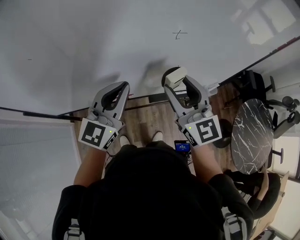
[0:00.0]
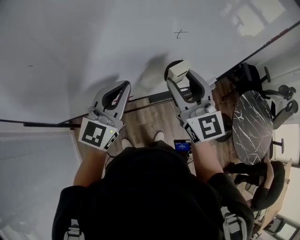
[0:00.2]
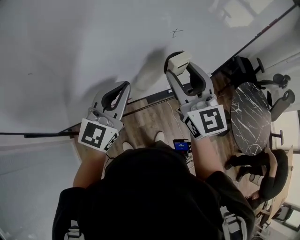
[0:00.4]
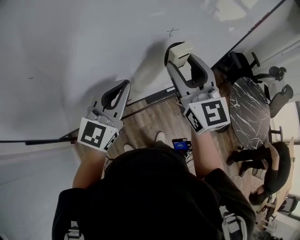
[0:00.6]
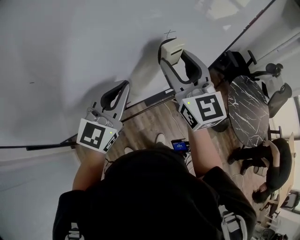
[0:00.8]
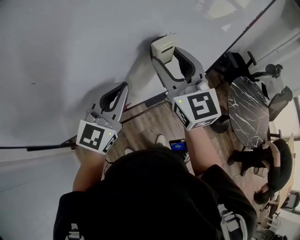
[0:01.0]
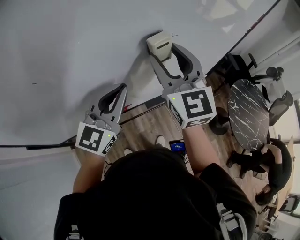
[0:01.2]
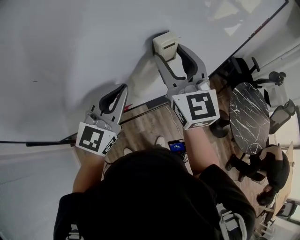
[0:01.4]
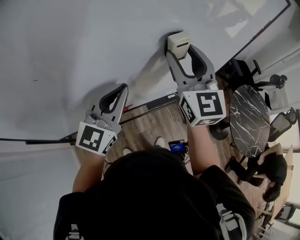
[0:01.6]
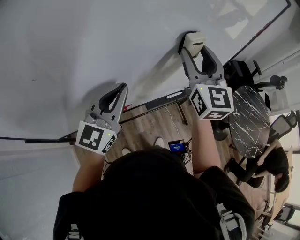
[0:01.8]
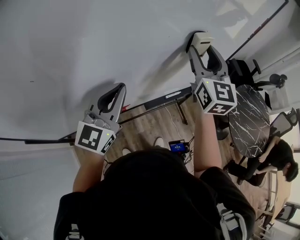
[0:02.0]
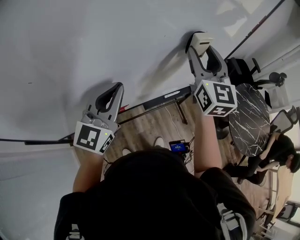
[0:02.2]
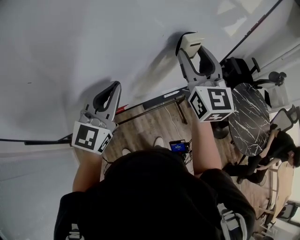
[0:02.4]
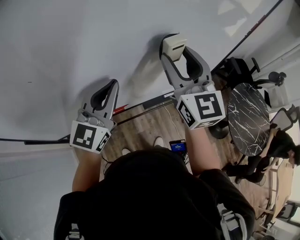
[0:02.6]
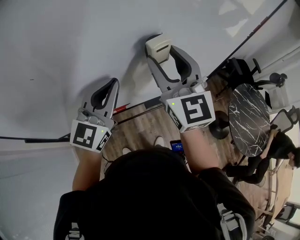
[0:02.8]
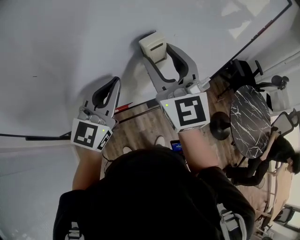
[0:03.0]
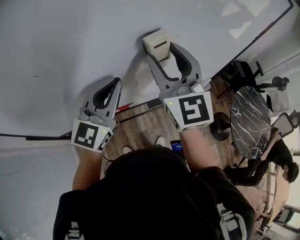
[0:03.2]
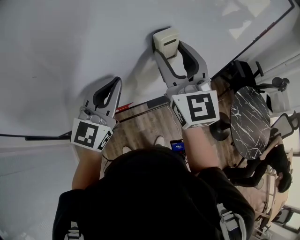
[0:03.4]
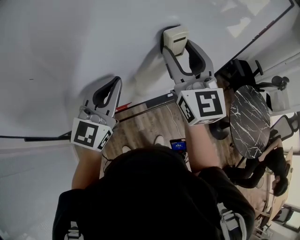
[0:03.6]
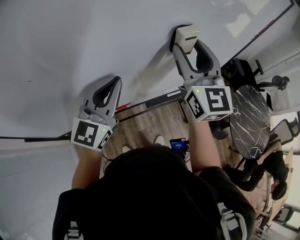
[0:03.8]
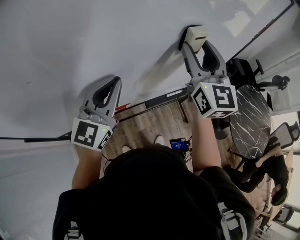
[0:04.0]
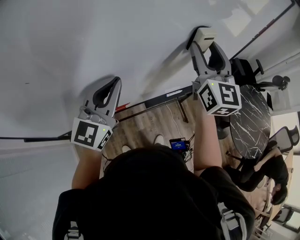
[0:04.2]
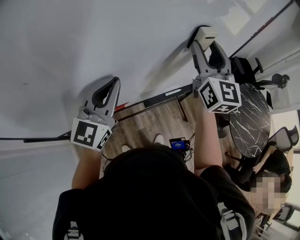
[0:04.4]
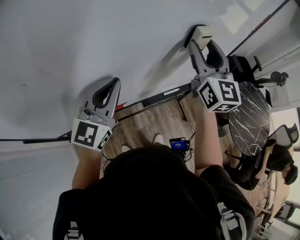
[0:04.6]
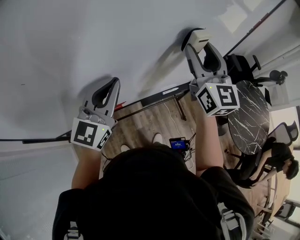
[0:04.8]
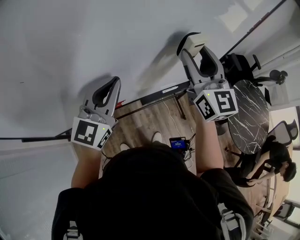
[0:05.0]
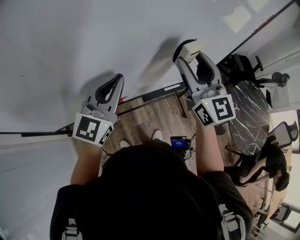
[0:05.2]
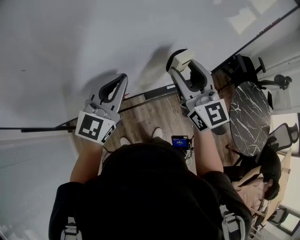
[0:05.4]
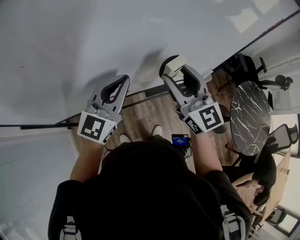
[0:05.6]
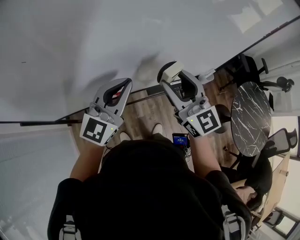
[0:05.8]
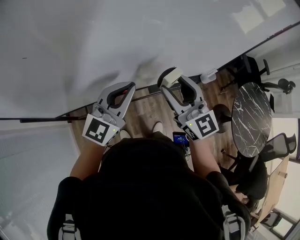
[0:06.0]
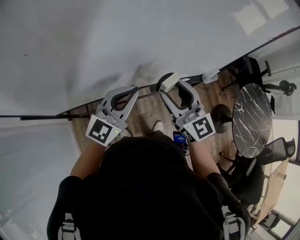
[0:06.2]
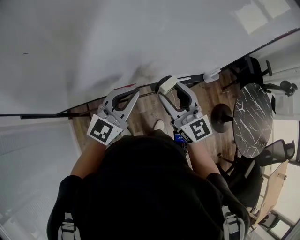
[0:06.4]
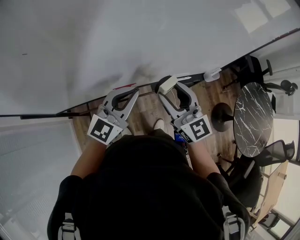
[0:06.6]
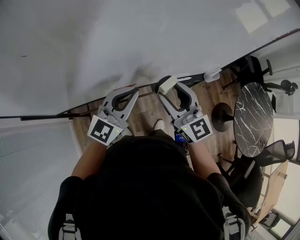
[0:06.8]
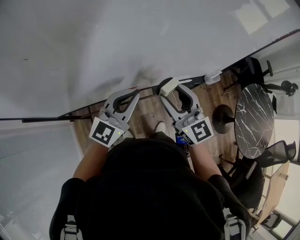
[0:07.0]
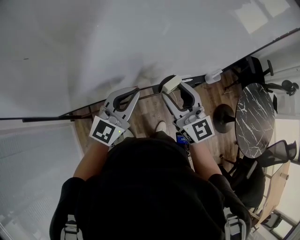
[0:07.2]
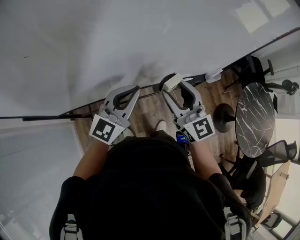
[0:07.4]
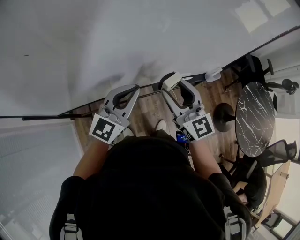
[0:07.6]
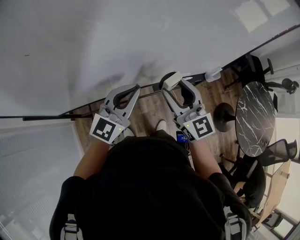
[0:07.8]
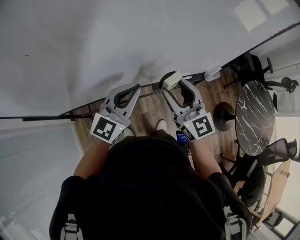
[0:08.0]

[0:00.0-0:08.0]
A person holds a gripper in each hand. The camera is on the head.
0:00.0 to 0:01.6: The right gripper travels upward and forward by about 10 cm, and changes its angle by approximately 20 degrees.
0:01.6 to 0:03.2: The right gripper moves some 10 cm to the right and comes back.
0:03.2 to 0:04.8: The right gripper travels to the right by approximately 15 cm.
0:04.8 to 0:06.4: The left gripper moves downward and backward, roughly 10 cm. The right gripper moves downward, backward and to the left, roughly 25 cm, and changes its angle by about 30 degrees.
0:06.4 to 0:08.0: Neither gripper changes place.

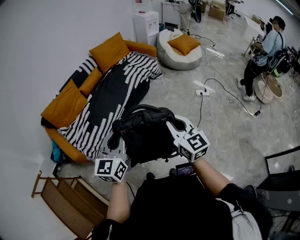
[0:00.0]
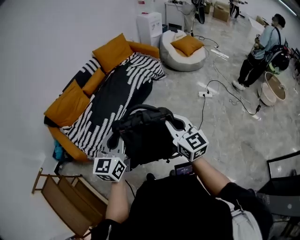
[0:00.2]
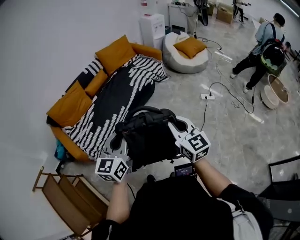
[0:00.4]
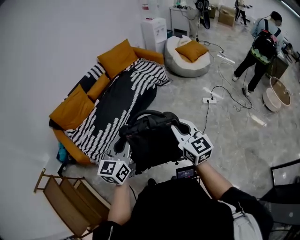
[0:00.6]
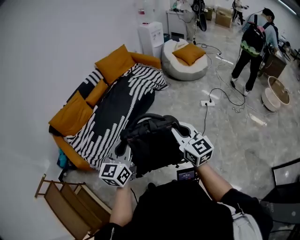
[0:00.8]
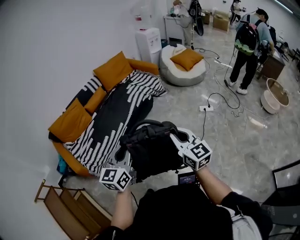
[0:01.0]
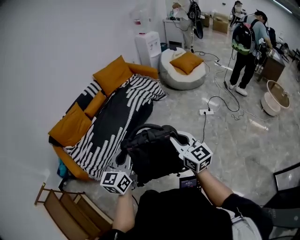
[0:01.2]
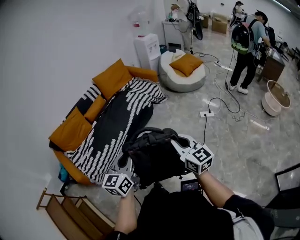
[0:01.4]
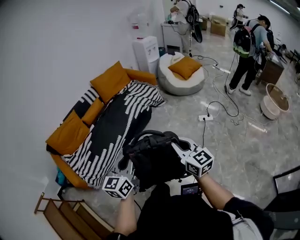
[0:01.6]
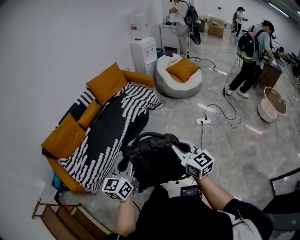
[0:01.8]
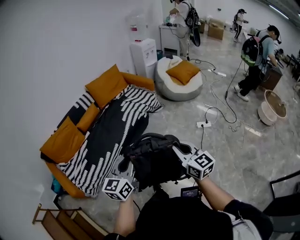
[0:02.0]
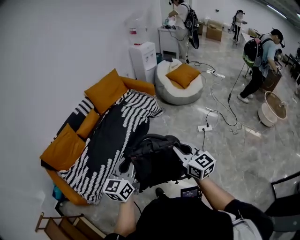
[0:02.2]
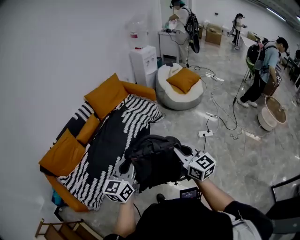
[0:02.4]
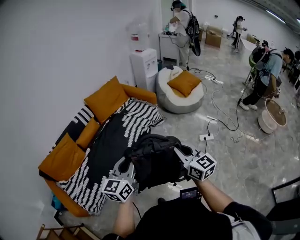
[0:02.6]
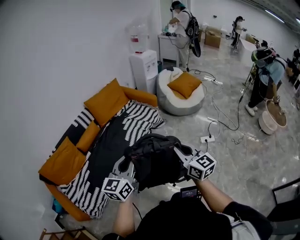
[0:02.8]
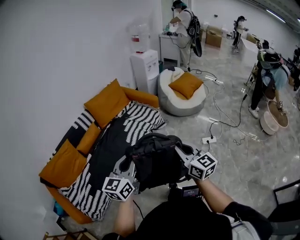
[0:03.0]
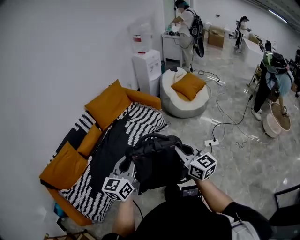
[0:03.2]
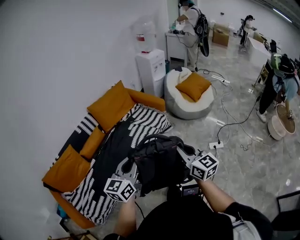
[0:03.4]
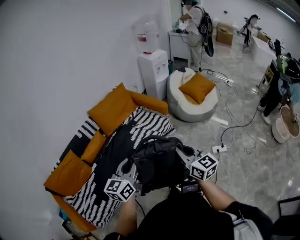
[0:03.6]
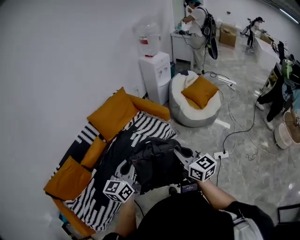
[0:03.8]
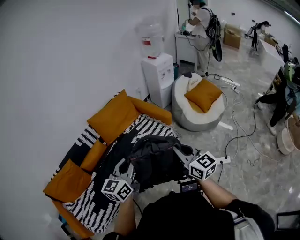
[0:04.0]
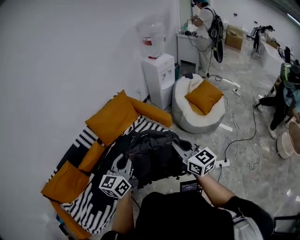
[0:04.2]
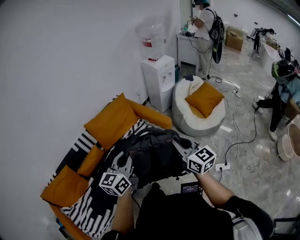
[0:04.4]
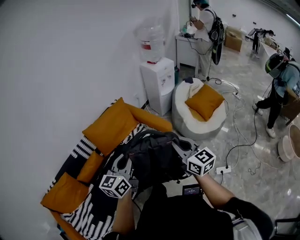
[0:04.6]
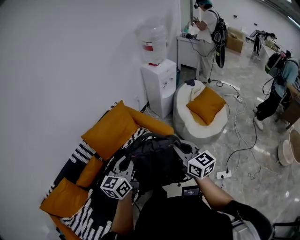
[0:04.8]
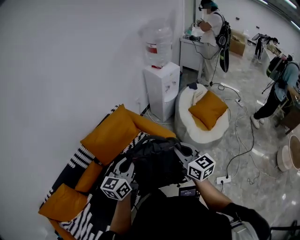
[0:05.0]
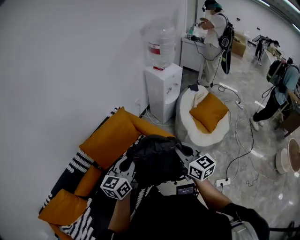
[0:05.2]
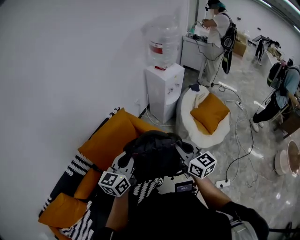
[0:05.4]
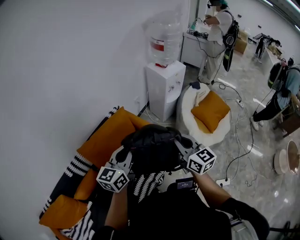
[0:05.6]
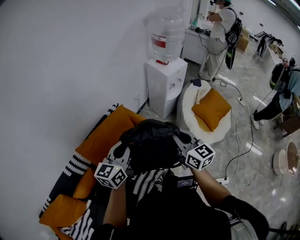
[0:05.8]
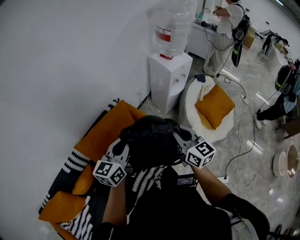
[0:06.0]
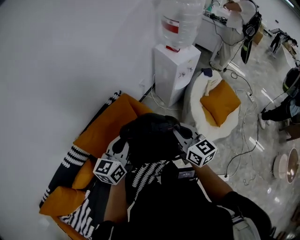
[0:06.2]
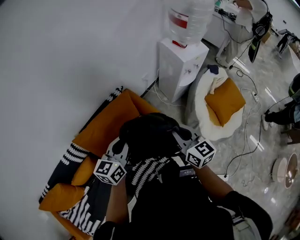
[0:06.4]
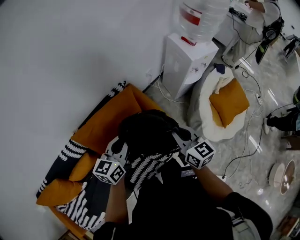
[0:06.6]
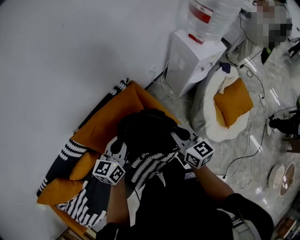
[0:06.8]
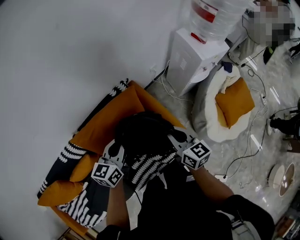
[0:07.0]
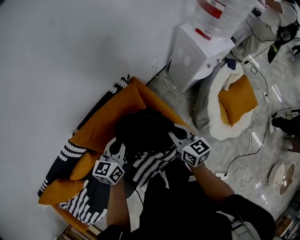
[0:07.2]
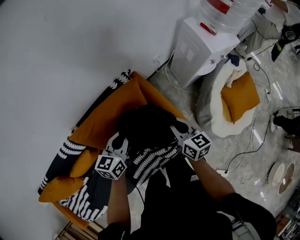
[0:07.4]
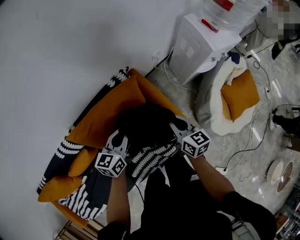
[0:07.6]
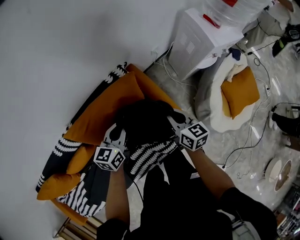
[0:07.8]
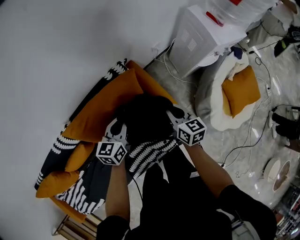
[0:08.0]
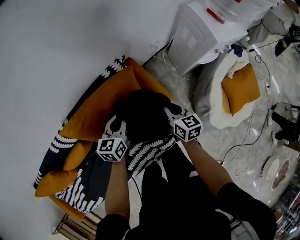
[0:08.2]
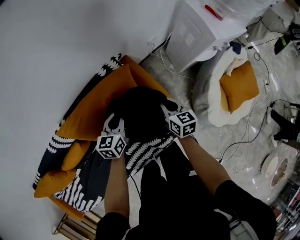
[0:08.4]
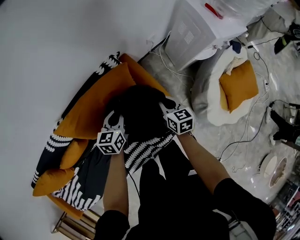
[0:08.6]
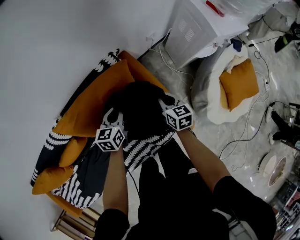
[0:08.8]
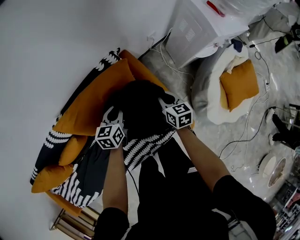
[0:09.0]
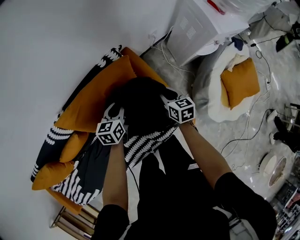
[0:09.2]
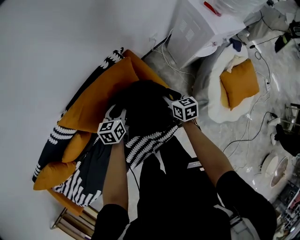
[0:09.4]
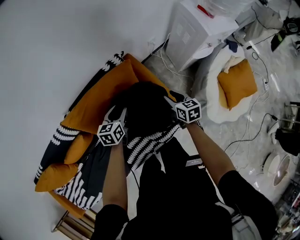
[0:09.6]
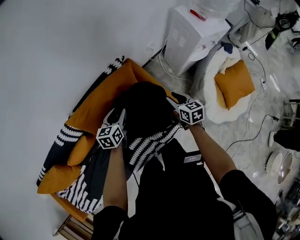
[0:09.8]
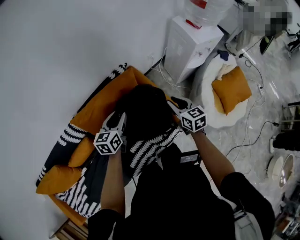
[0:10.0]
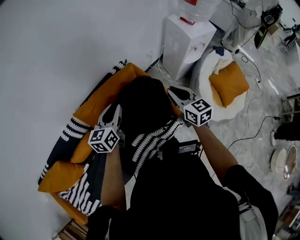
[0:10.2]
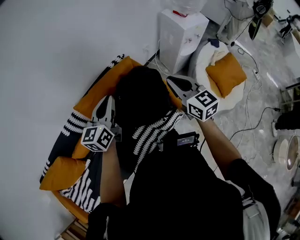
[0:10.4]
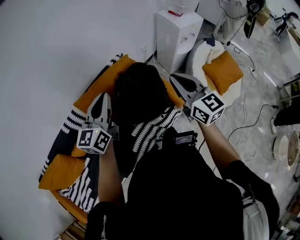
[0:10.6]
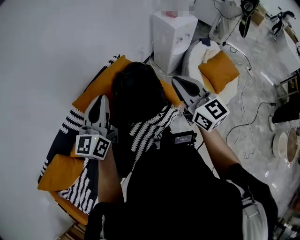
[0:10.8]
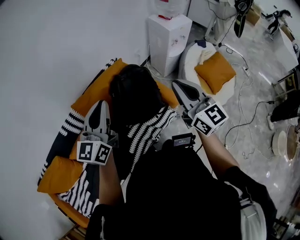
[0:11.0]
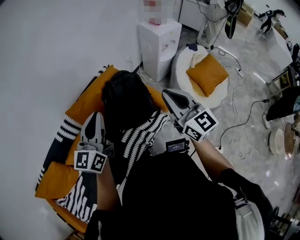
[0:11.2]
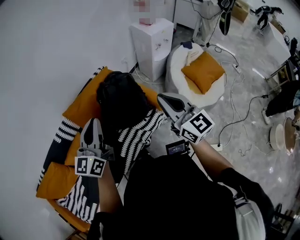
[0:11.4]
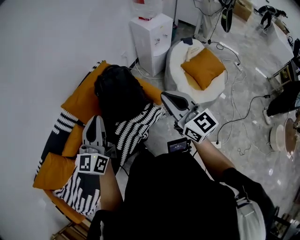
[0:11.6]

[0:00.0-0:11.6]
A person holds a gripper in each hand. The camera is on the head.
0:00.0 to 0:01.4: The grippers both shift to the right by roughly 15 cm.
0:01.4 to 0:02.8: Both grippers travel together forward, approximately 25 cm.
0:02.8 to 0:04.4: Both grippers travel together forward, some 40 cm.
0:04.4 to 0:05.8: The two grippers go some 35 cm forward.
0:05.8 to 0:07.2: Both grippers travel together downward, forward and to the left, some 25 cm. The right gripper changes its angle by approximately 20 degrees; the left gripper rotates roughly 20 degrees.
0:07.2 to 0:08.8: The right gripper shifts some 20 cm downward and forward; the left gripper shifts approximately 15 cm downward.
0:08.8 to 0:10.2: The two grippers go about 25 cm upward and backward. The right gripper opens and closes again.
0:10.2 to 0:11.6: Both grippers travel together backward and upward, approximately 35 cm. The right gripper changes its angle by roughly 20 degrees. The left gripper turns by approximately 20 degrees, and closes up.

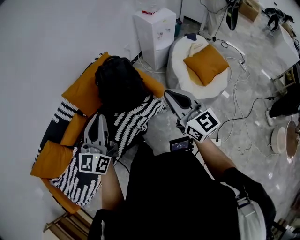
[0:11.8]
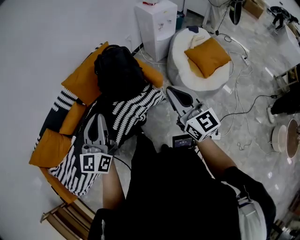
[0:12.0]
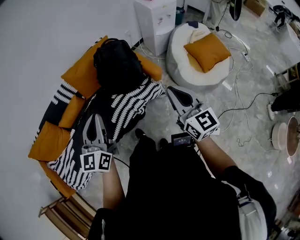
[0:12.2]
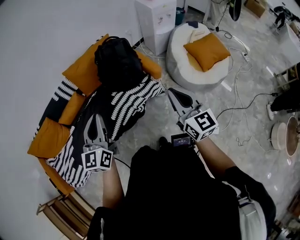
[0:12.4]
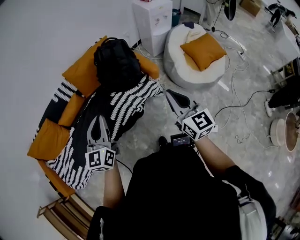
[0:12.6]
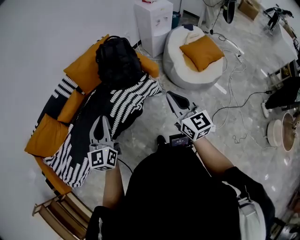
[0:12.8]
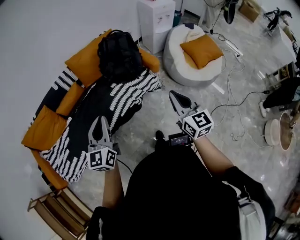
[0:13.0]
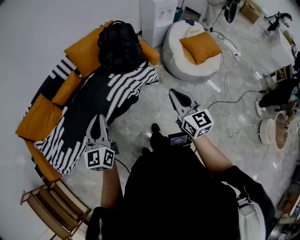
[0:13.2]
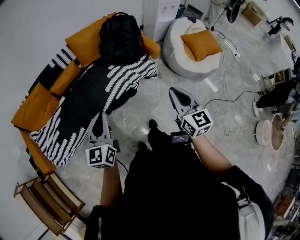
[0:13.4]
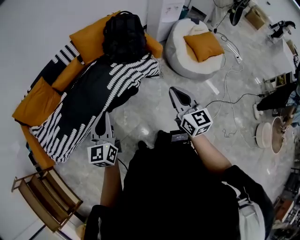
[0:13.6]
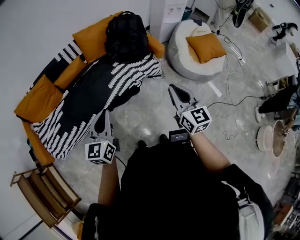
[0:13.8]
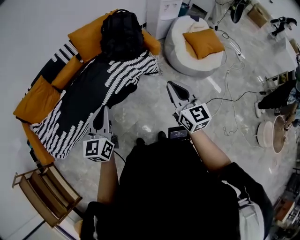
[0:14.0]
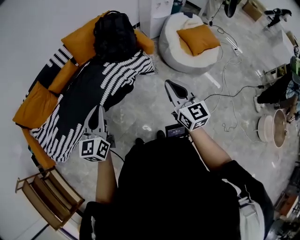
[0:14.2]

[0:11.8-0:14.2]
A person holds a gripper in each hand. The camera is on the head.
0:11.8 to 0:13.0: The grippers both shift backward by approximately 20 cm.
0:13.0 to 0:14.2: The grippers both shift backward by about 10 cm.

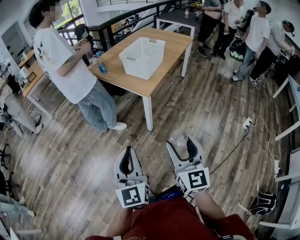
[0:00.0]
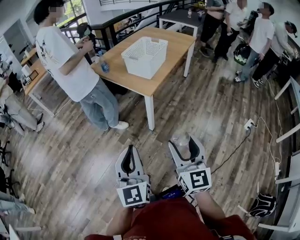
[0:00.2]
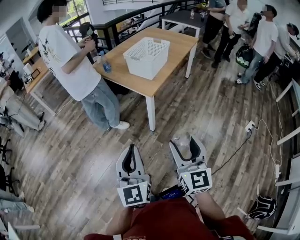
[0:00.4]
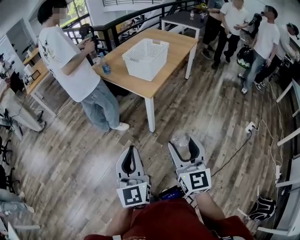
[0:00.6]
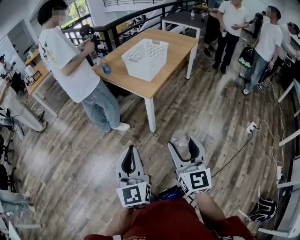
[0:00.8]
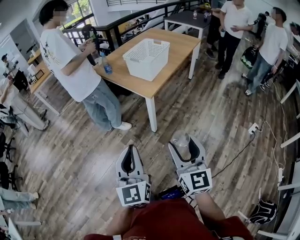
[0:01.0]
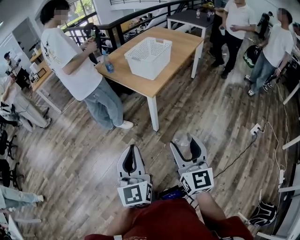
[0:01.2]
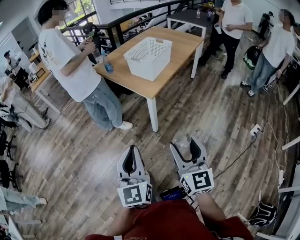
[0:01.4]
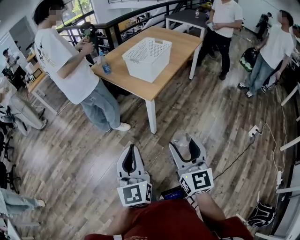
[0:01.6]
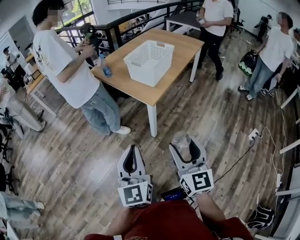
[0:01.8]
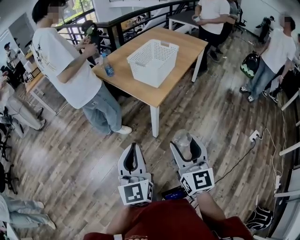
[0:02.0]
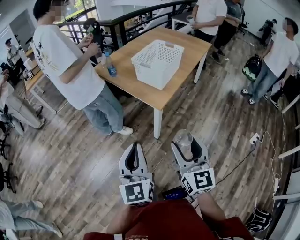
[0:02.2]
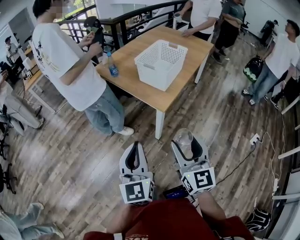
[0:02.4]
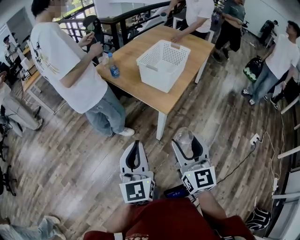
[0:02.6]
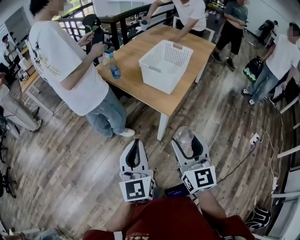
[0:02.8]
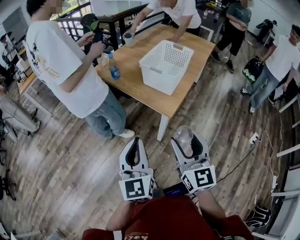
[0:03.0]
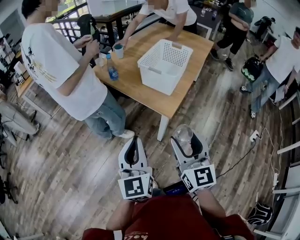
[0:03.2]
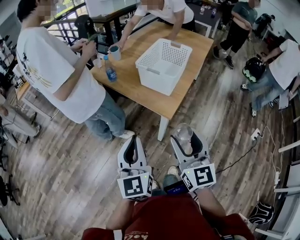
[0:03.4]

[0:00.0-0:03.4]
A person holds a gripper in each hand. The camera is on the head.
0:00.0 to 0:01.6: The right gripper moves about 5 cm, while the left gripper ends up roughly 5 cm from where it was.
0:01.6 to 0:03.4: The left gripper shifts approximately 25 cm forward, while the right gripper is displaced forward and to the left by approximately 25 cm.
